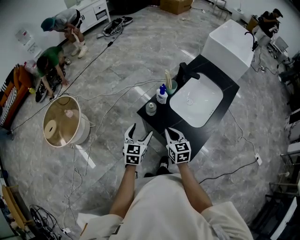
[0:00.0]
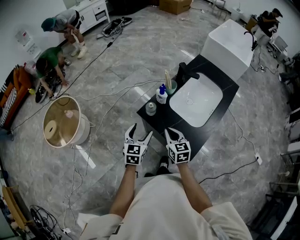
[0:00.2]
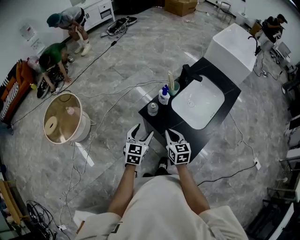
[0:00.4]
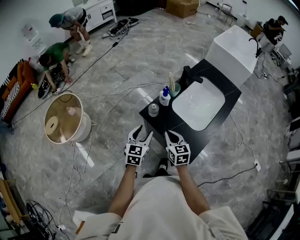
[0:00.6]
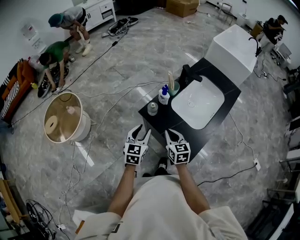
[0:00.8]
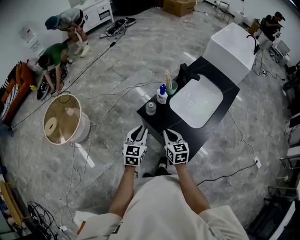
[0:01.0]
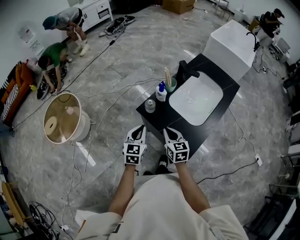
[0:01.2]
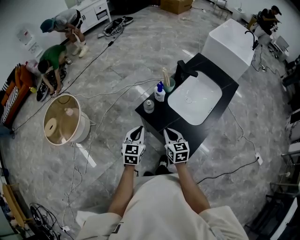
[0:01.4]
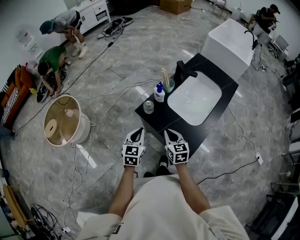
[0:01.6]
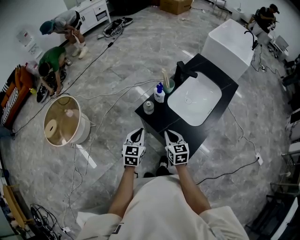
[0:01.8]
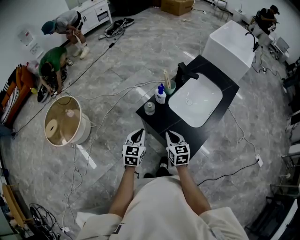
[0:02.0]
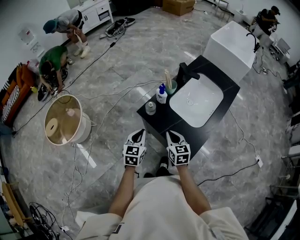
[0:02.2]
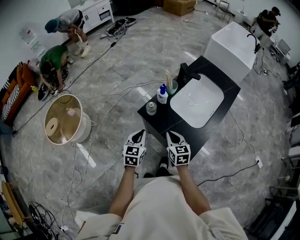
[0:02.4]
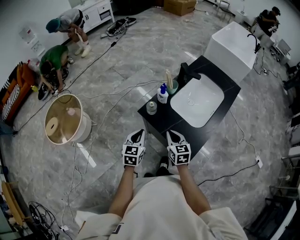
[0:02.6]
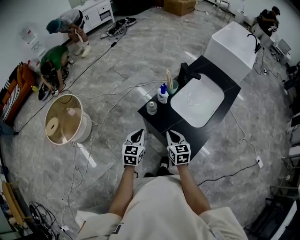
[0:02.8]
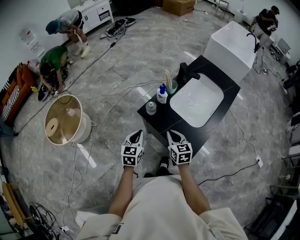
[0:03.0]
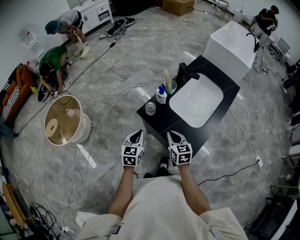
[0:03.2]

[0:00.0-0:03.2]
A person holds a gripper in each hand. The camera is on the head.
0:00.0 to 0:01.6: The left gripper closes up.
0:01.6 to 0:03.2: The grippers make only small movements.

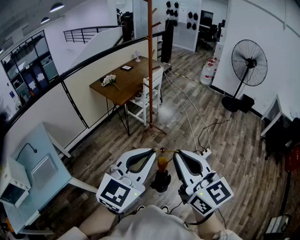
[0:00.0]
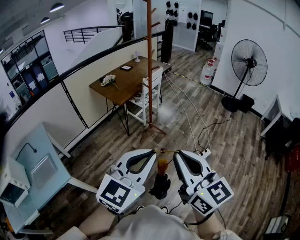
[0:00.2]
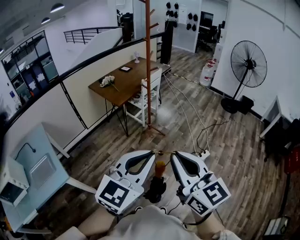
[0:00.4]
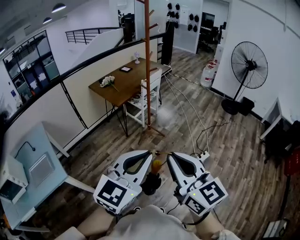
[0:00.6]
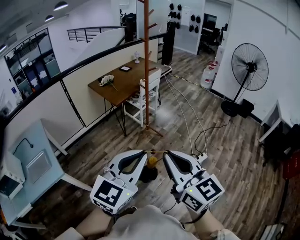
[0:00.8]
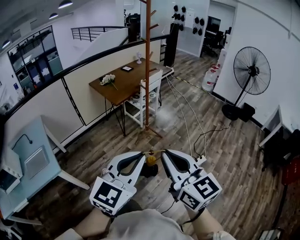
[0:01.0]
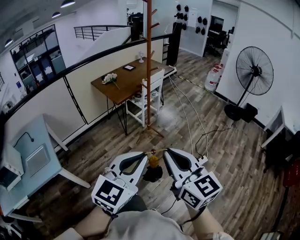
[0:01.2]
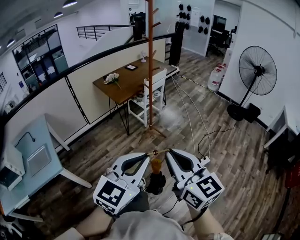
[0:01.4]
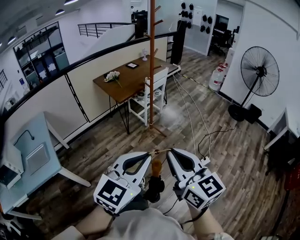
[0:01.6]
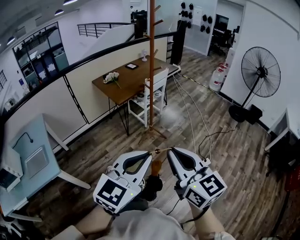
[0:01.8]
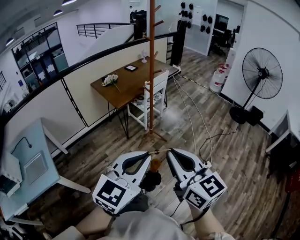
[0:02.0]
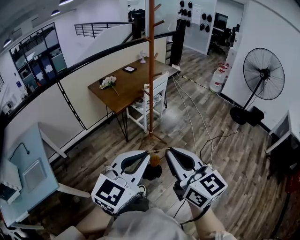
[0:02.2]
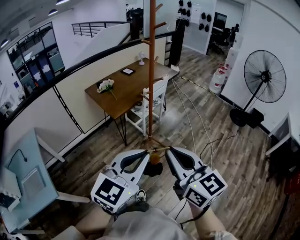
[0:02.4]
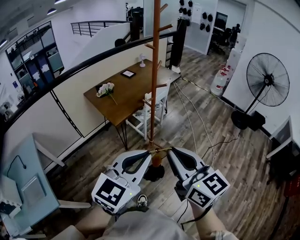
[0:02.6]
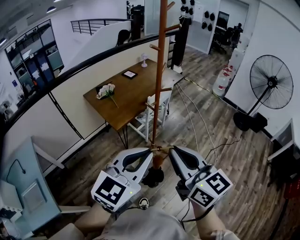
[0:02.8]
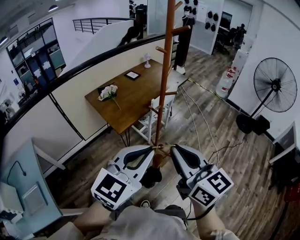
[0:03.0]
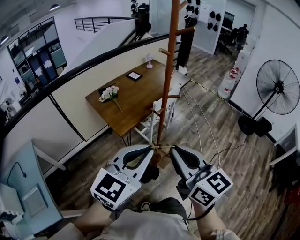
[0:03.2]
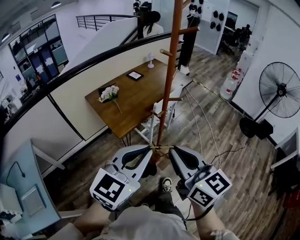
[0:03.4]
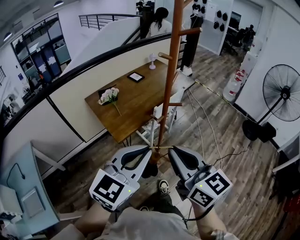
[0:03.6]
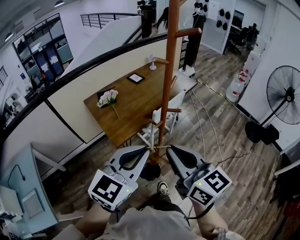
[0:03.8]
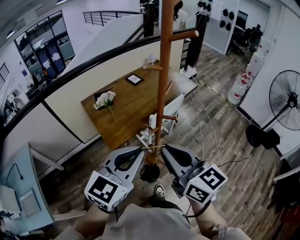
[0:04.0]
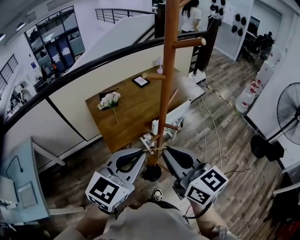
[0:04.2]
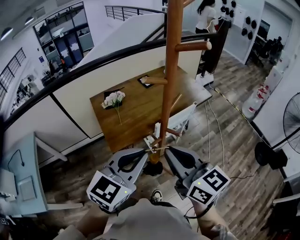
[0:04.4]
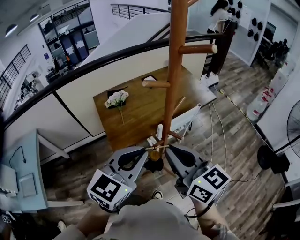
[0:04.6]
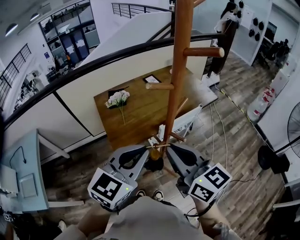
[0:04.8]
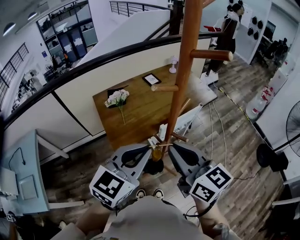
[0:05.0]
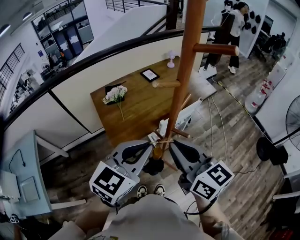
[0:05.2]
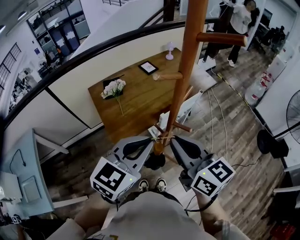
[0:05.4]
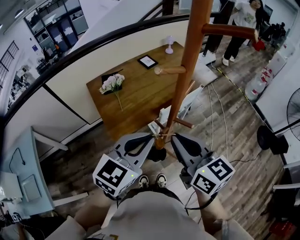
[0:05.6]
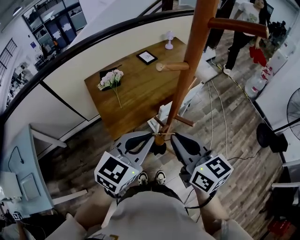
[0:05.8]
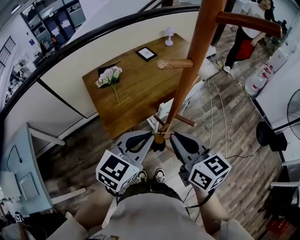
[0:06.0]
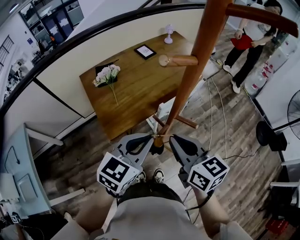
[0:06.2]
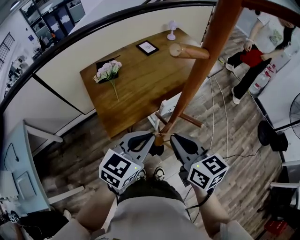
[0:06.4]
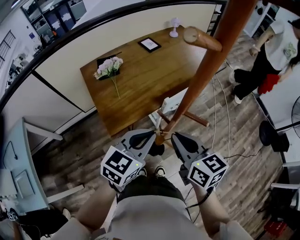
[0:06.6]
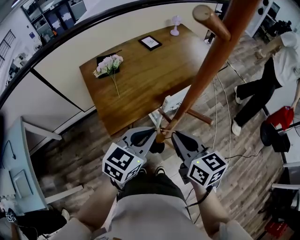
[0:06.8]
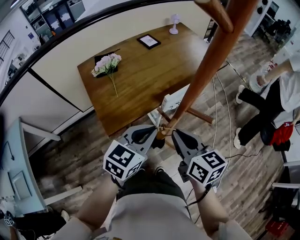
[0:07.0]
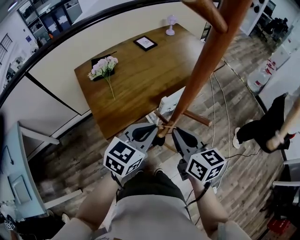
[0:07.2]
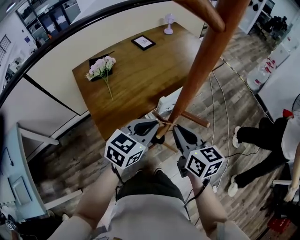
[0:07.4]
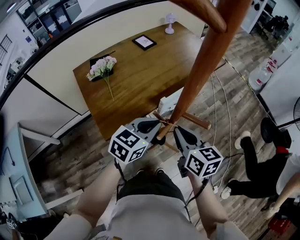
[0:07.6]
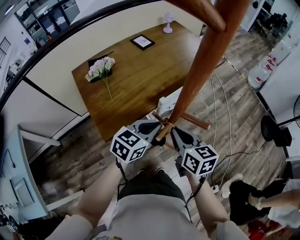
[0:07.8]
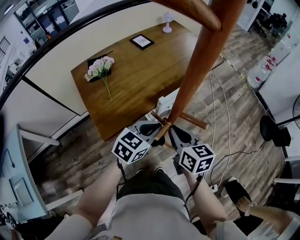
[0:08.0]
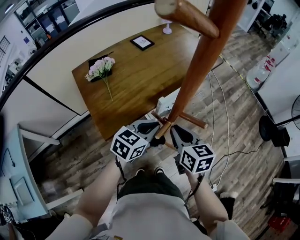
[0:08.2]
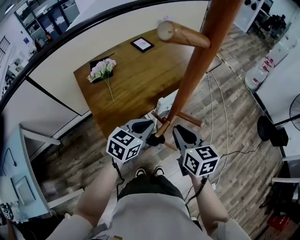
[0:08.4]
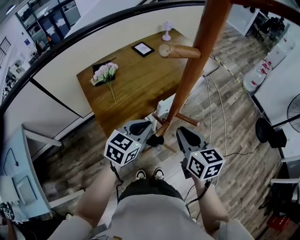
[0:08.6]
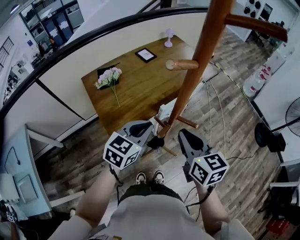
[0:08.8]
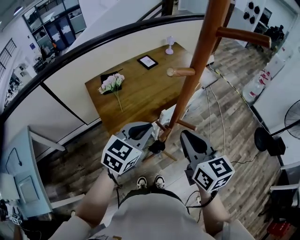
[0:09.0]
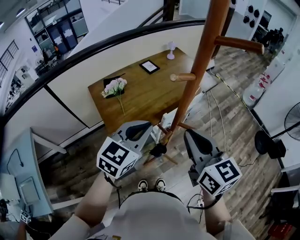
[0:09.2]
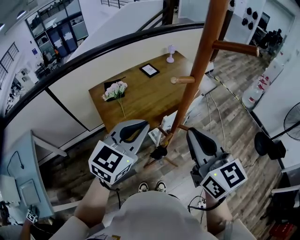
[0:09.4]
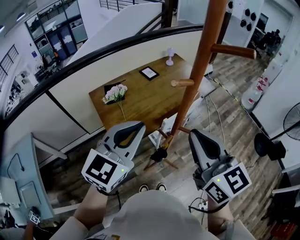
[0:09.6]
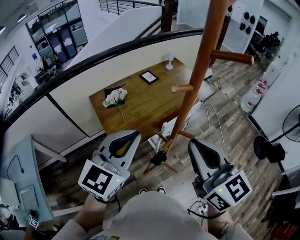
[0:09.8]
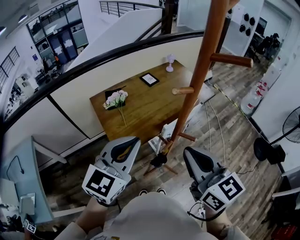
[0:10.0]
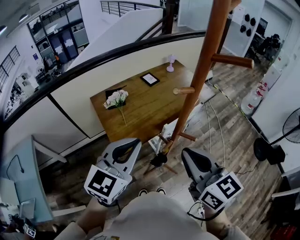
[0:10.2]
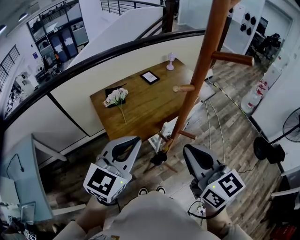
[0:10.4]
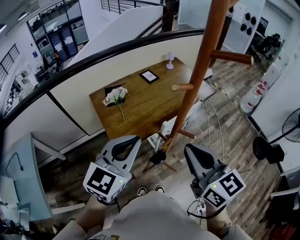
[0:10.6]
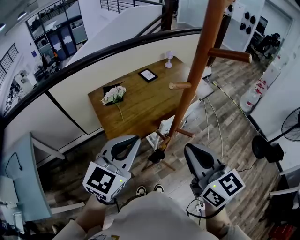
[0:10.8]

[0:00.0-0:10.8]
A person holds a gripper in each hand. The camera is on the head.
0:00.0 to 0:01.6: The right gripper moves to the right and forward, approximately 10 cm. Meanwhile the left gripper is displaced to the right by approximately 10 cm.
0:01.6 to 0:03.0: The pair of grippers is taken forward, some 40 cm.
0:03.0 to 0:04.6: The grippers both shift forward by some 30 cm. The left gripper changes its angle by some 20 degrees. Meanwhile the right gripper turns by some 20 degrees.
0:04.6 to 0:06.2: Both grippers travel together downward and forward, roughly 15 cm.
0:06.2 to 0:07.8: The left gripper shifts about 20 cm downward and forward; the right gripper is displaced downward by approximately 15 cm.
0:07.8 to 0:09.2: The grippers both shift upward by about 25 cm. The right gripper changes its angle by some 20 degrees; the left gripper changes its angle by about 20 degrees.
0:09.2 to 0:10.8: The left gripper shifts some 10 cm upward and backward.

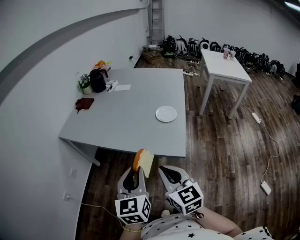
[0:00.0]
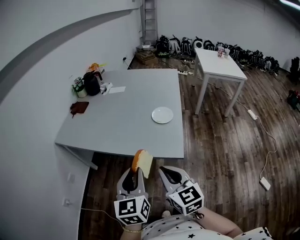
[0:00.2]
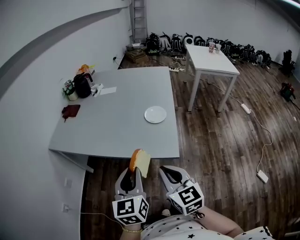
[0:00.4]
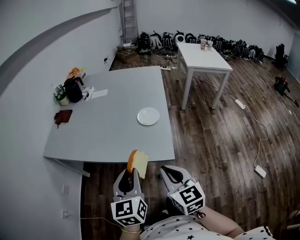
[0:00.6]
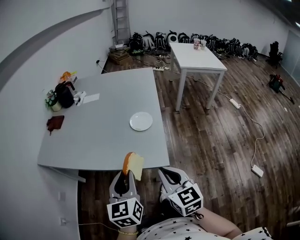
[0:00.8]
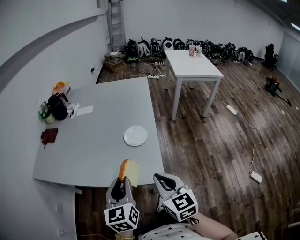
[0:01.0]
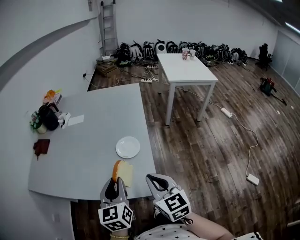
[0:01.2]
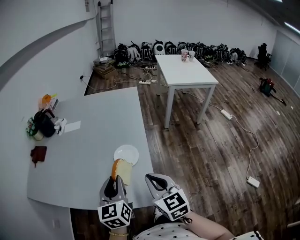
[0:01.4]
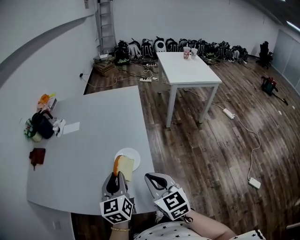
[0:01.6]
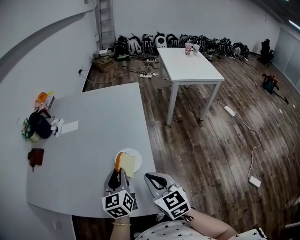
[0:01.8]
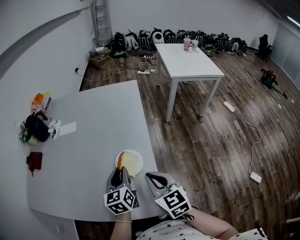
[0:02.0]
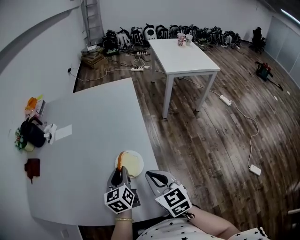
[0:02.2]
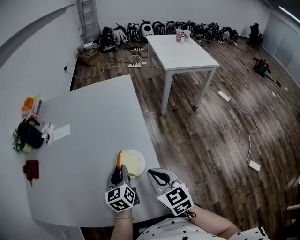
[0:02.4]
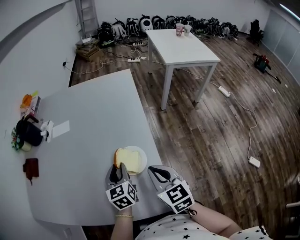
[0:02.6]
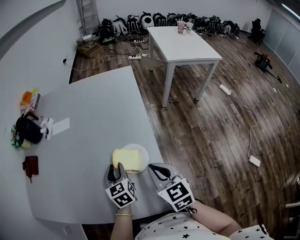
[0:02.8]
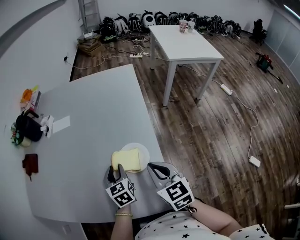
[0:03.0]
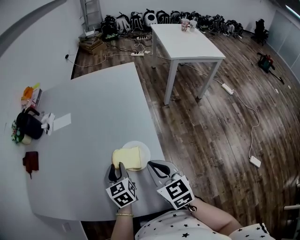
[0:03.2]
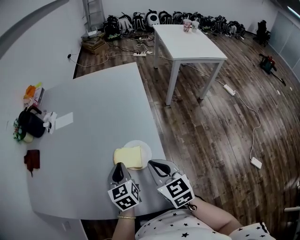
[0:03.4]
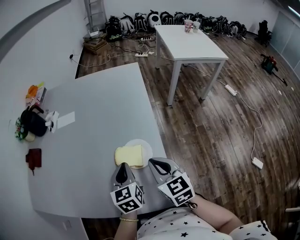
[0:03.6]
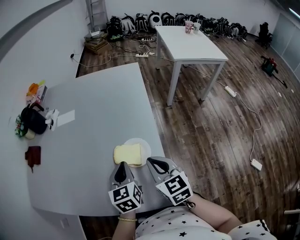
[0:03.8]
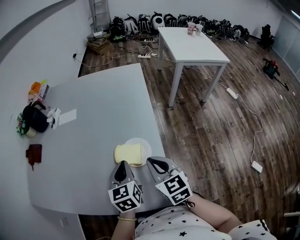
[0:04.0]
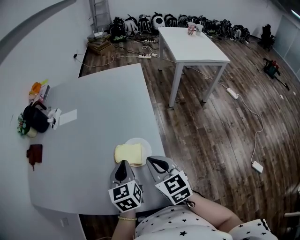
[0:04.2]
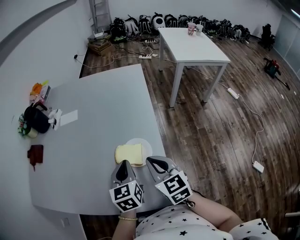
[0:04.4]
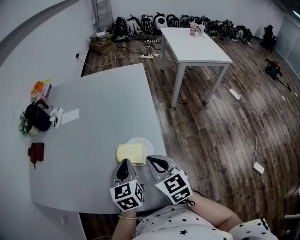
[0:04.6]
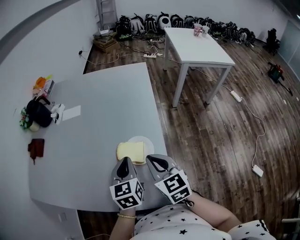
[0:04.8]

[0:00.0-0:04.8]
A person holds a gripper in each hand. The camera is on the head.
0:00.0 to 0:01.6: The grippers both shift forward and to the right by about 30 cm.
0:01.6 to 0:03.2: The right gripper goes about 10 cm forward and downward. Meanwhile the left gripper travels downward and forward by some 15 cm.
0:03.2 to 0:04.8: The left gripper moves upward, roughly 10 cm, and closes.

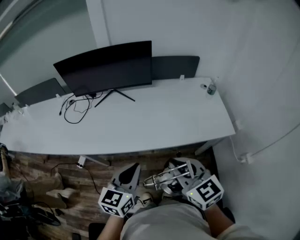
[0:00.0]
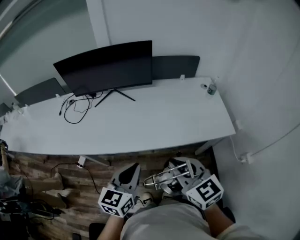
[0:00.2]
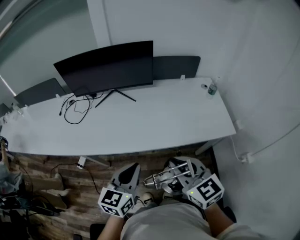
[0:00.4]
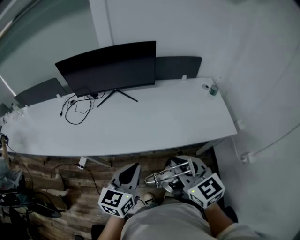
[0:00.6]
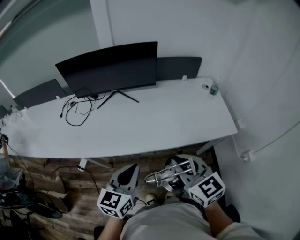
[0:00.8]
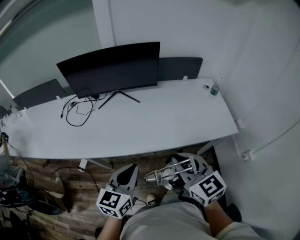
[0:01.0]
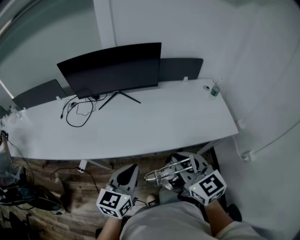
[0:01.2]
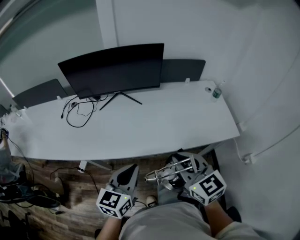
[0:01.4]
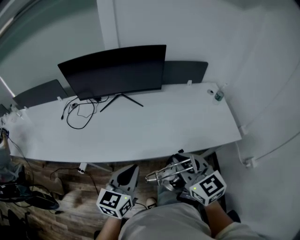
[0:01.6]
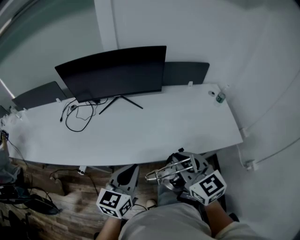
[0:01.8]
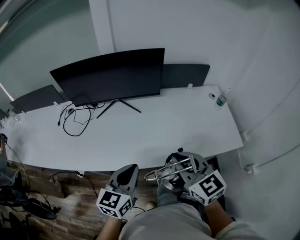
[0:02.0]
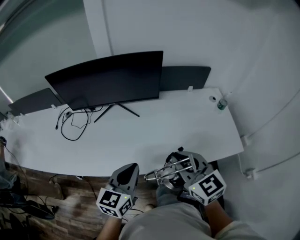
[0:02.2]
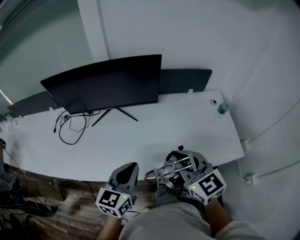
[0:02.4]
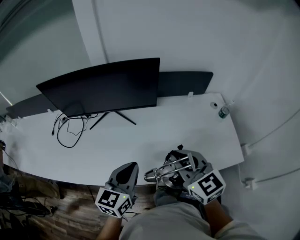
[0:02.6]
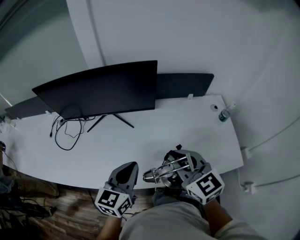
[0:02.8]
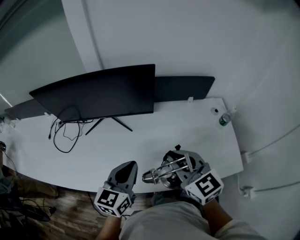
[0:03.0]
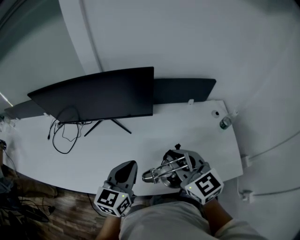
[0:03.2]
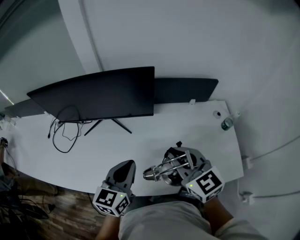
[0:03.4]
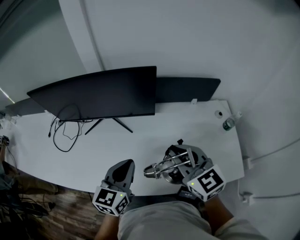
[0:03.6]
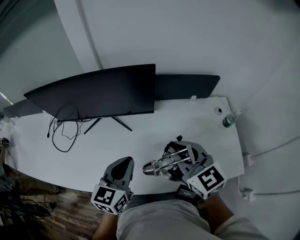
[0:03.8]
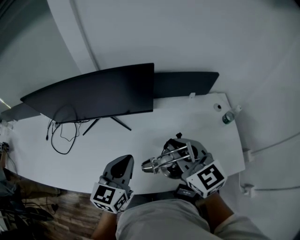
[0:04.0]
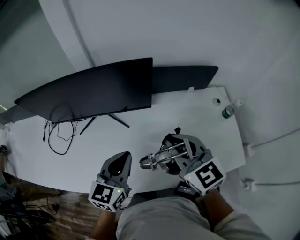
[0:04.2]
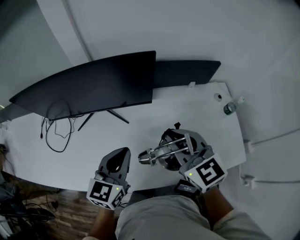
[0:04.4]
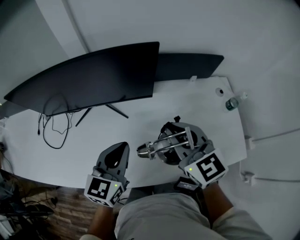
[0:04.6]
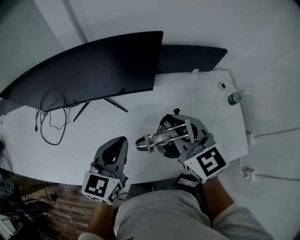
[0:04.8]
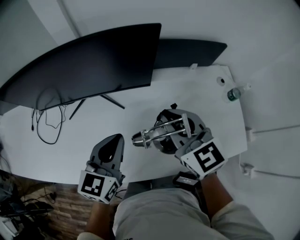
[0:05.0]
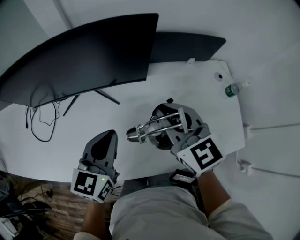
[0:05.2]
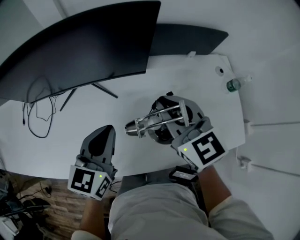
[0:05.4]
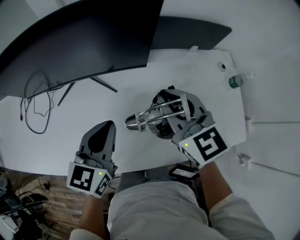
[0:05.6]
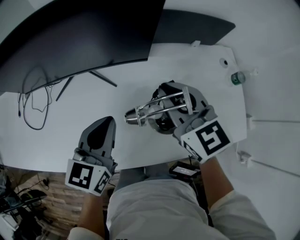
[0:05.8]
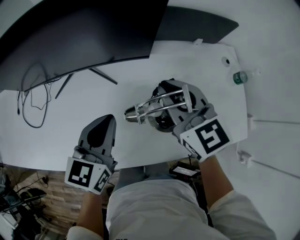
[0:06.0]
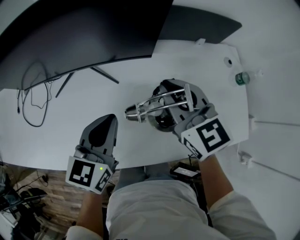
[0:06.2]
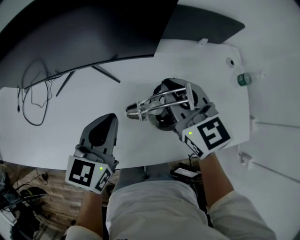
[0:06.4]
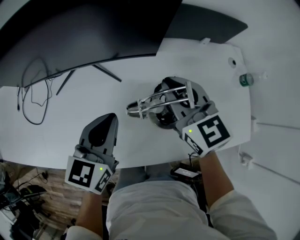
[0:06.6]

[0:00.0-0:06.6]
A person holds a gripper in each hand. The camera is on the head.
0:00.0 to 0:01.6: The left gripper travels to the left by about 10 cm. The right gripper shifts approximately 10 cm forward and to the left.
0:01.6 to 0:03.2: The right gripper shifts roughly 25 cm forward, while the left gripper moves forward and to the right, about 25 cm.
0:03.2 to 0:05.0: The grippers both shift forward by about 10 cm.
0:05.0 to 0:06.6: The two grippers go about 5 cm downward.
